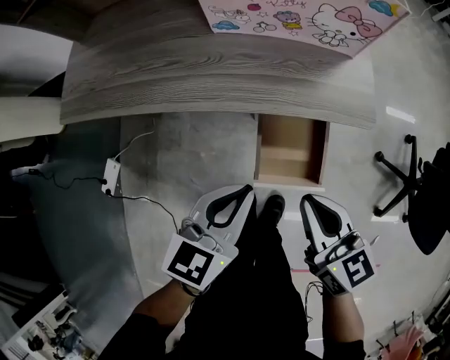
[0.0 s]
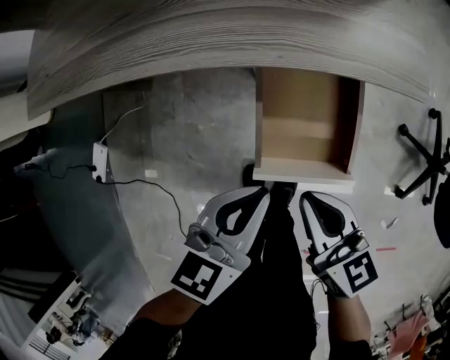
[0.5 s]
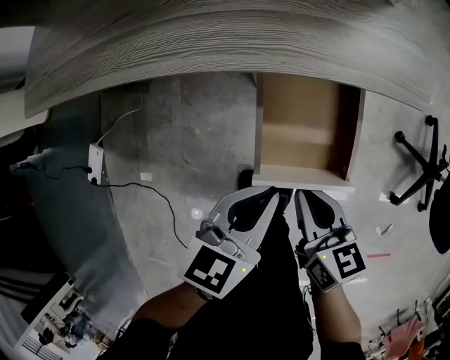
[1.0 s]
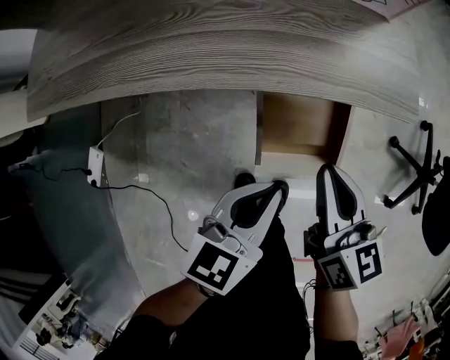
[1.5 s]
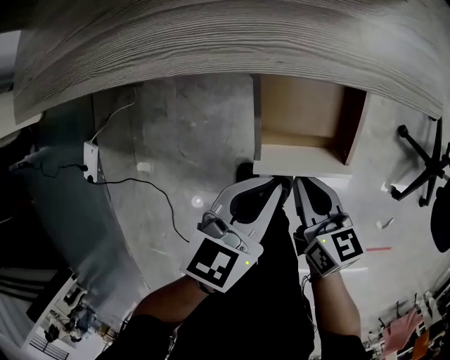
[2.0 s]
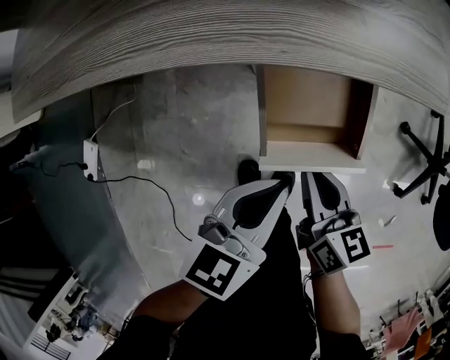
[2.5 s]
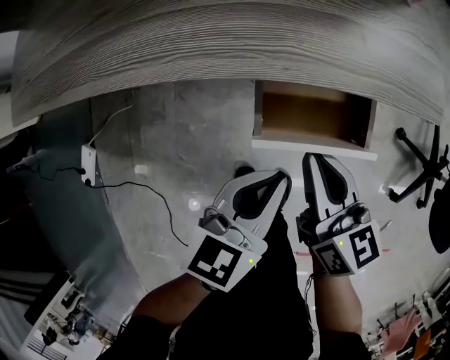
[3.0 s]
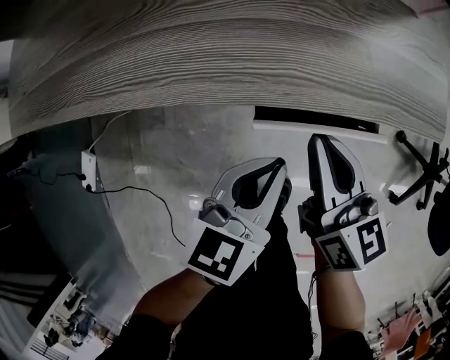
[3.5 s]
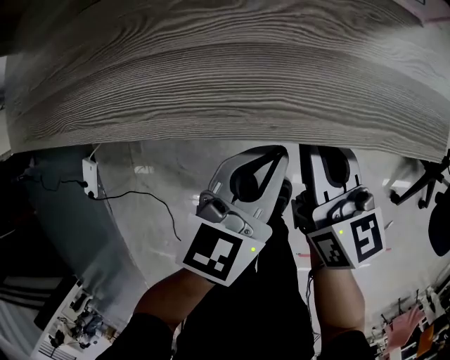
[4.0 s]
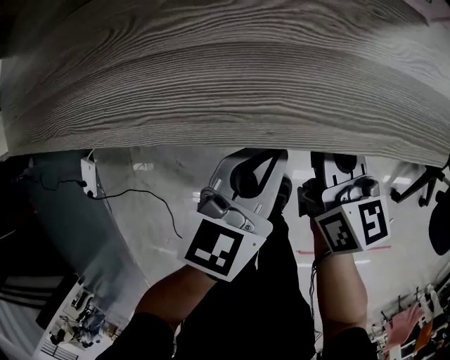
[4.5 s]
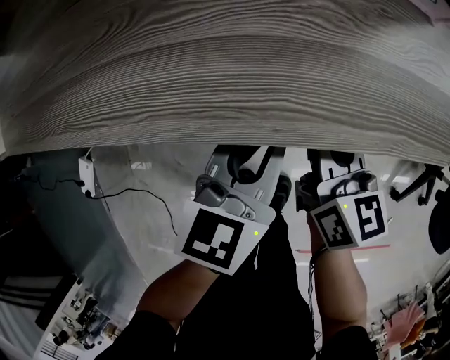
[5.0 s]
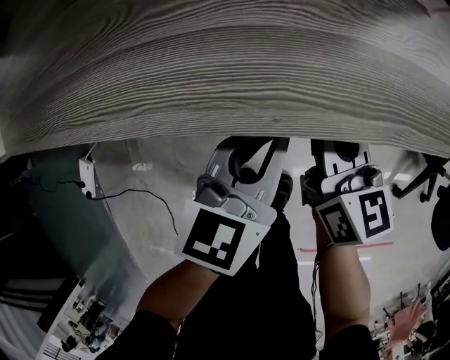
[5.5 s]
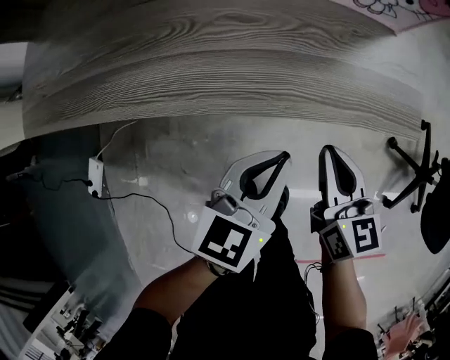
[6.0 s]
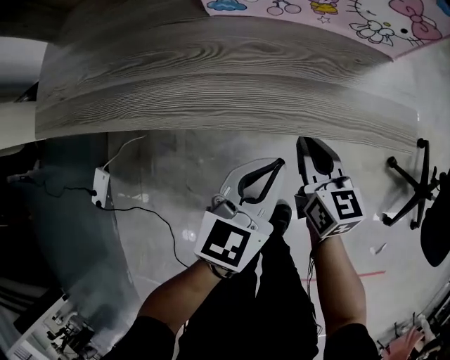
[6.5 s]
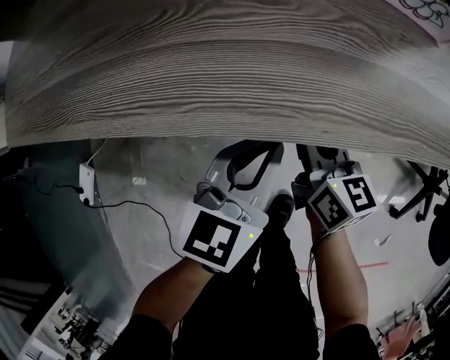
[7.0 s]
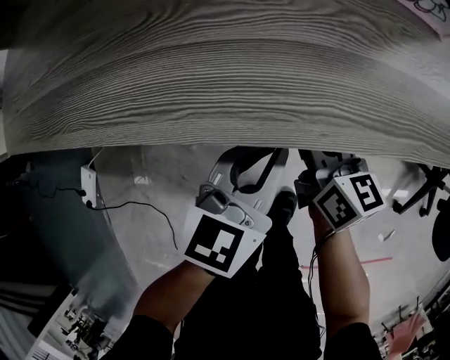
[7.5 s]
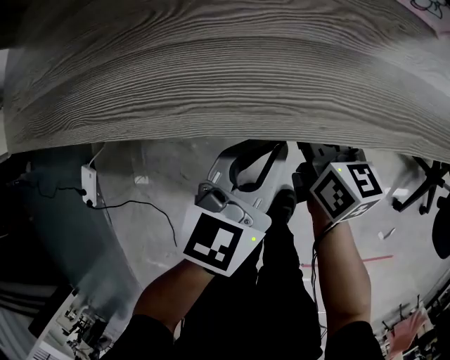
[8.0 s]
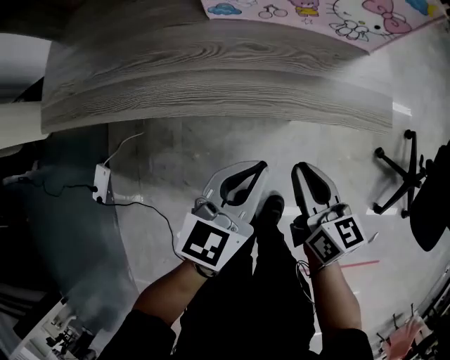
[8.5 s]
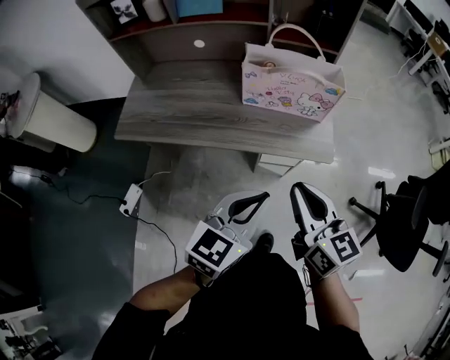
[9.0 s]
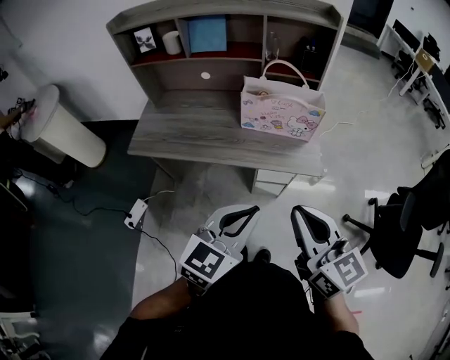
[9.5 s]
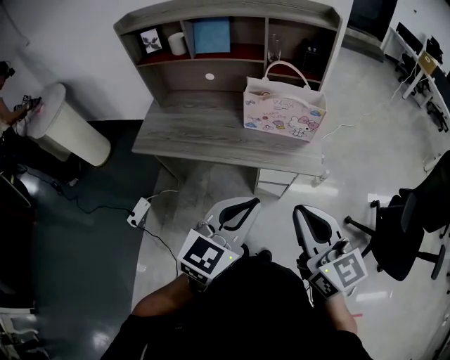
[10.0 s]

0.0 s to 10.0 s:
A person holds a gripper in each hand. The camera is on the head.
0.0 to 2.0 s: The left gripper moves downward, roughly 15 cm. Meanwhile the right gripper goes up and down, about 25 cm each way, reversing 2 times.
2.0 to 4.0 s: The right gripper moves forward and upward, approximately 20 cm. Meanwhile the left gripper travels forward by about 10 cm.
4.0 to 6.0 s: The right gripper ends up some 5 cm from where it was; the left gripper changes place by approximately 5 cm.
6.0 to 8.0 s: The right gripper moves downward, forward and to the left, approximately 15 cm, and opens up. Meanwhile the left gripper heads downward, covering some 5 cm.
8.0 to 10.0 s: The grippers both shift upward and backward by some 60 cm. The right gripper rotates some 40 degrees, and closes its fingers; the left gripper turns by approximately 20 degrees.

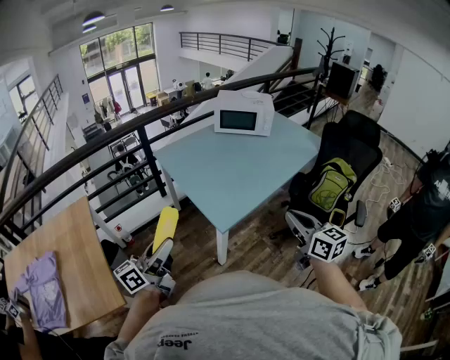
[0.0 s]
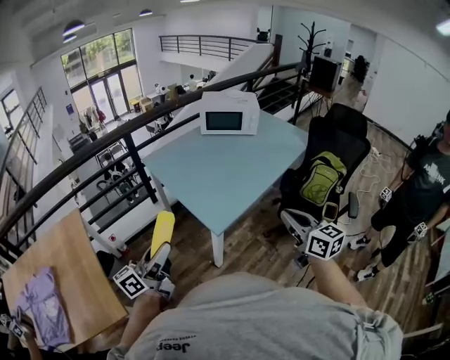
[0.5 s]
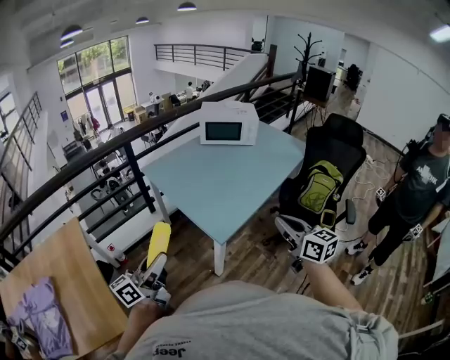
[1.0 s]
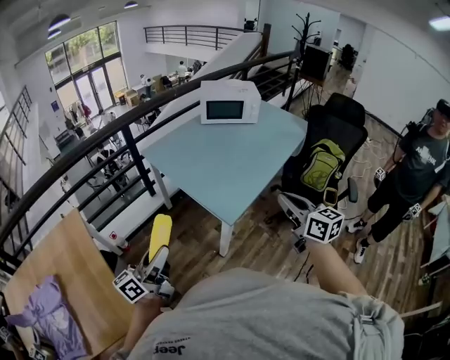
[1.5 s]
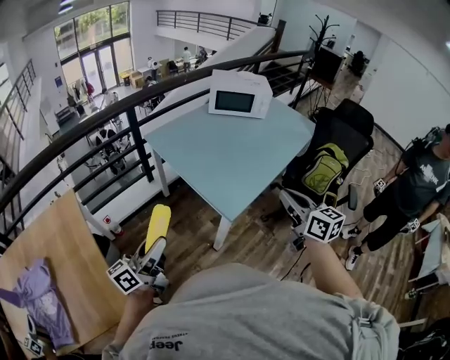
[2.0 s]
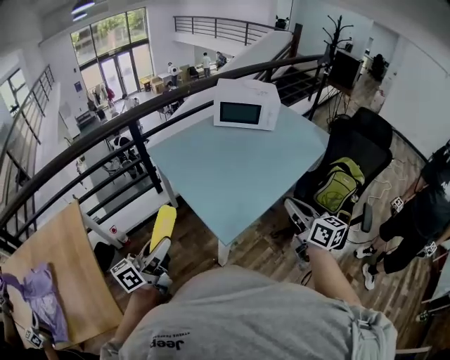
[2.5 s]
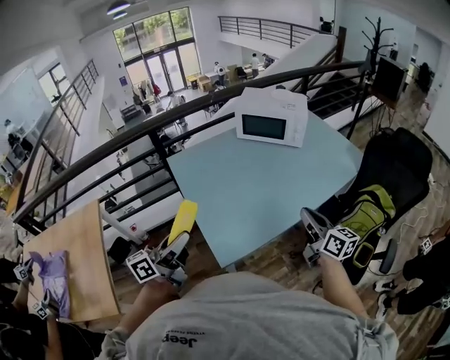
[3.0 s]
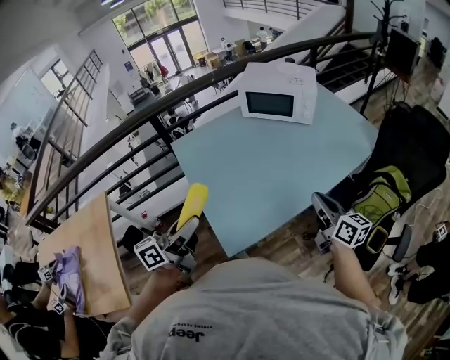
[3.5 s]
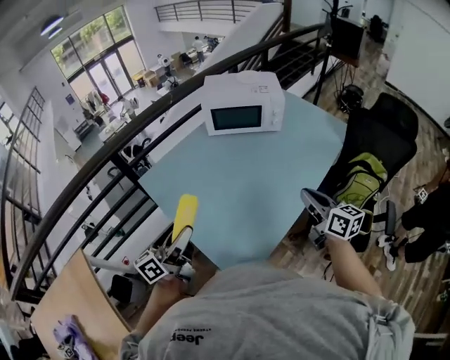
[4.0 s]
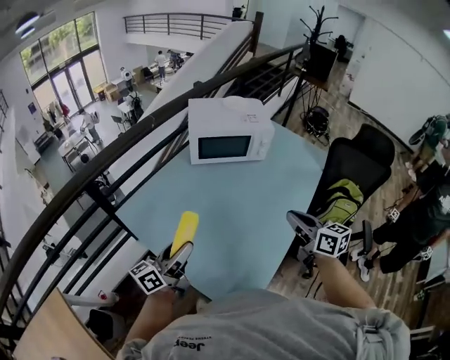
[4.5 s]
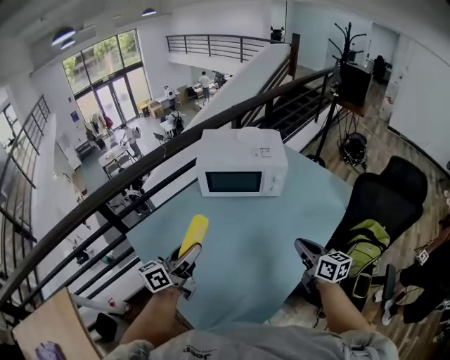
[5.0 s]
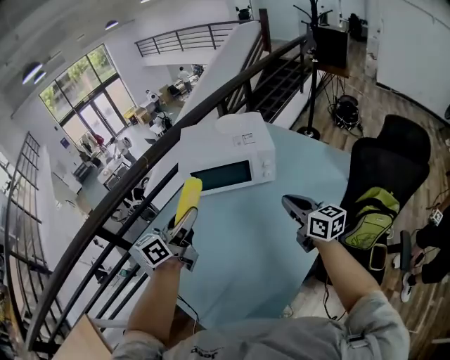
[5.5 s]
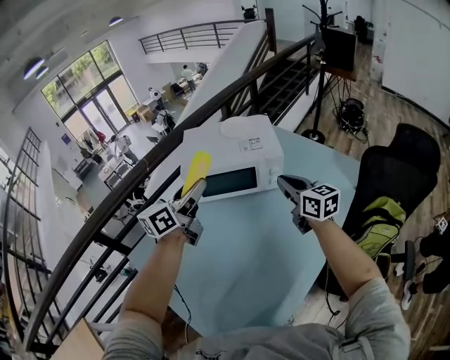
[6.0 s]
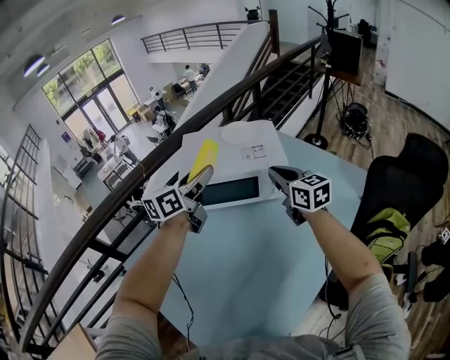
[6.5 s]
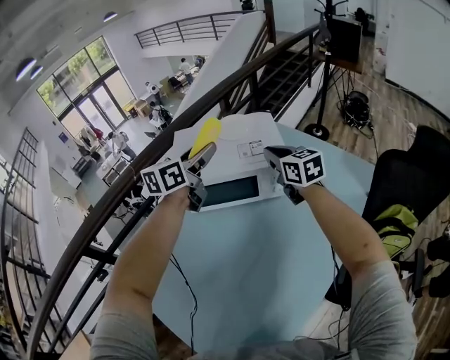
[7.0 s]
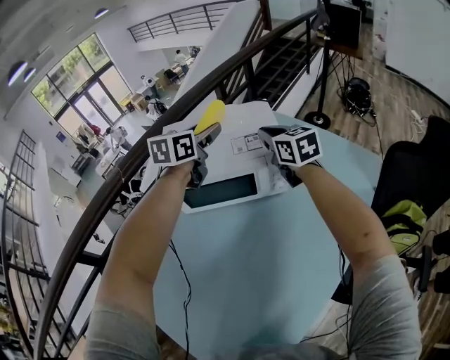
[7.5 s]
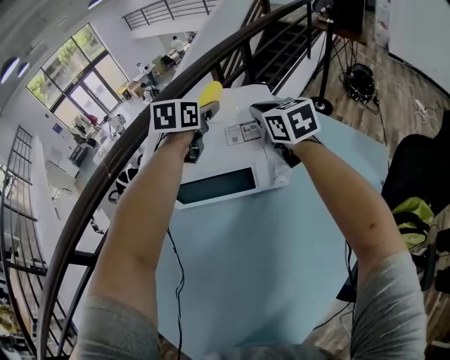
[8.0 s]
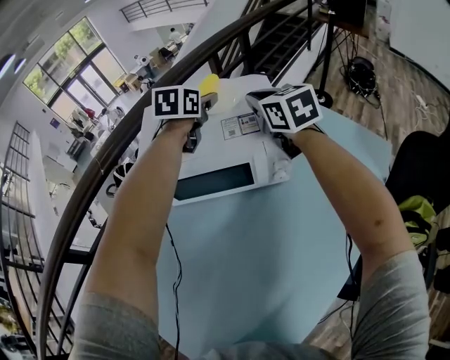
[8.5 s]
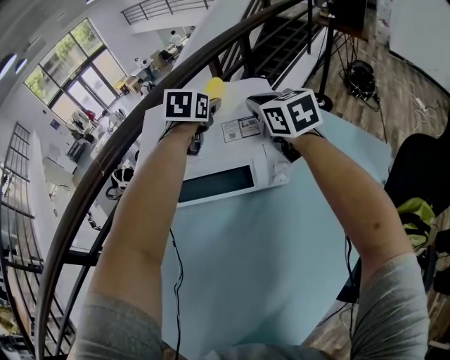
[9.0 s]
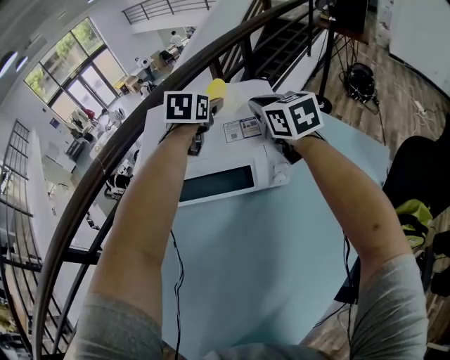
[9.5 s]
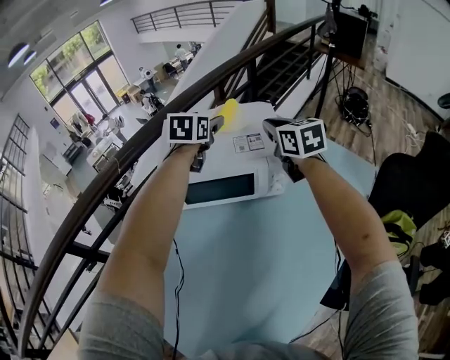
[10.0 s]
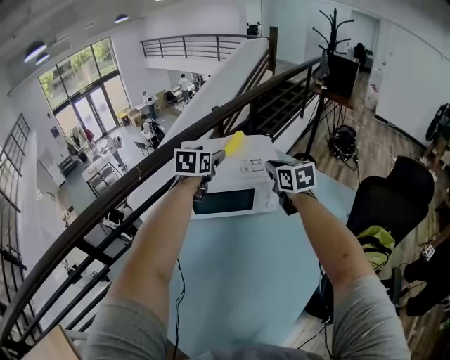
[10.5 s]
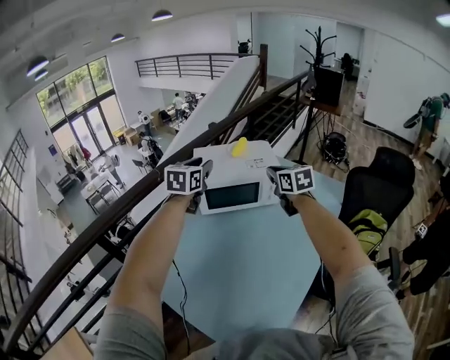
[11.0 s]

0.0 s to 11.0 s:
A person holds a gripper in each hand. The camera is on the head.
0.0 to 2.0 s: The left gripper travels to the left by some 10 cm; the right gripper travels to the left and forward by some 15 cm.
2.0 to 3.5 s: The left gripper is displaced to the right and forward by some 35 cm. Meanwhile the right gripper moves forward and to the right, some 35 cm.
3.5 to 5.5 s: Both grippers travel together forward, some 40 cm.
5.5 to 7.5 s: The grippers both shift forward by approximately 35 cm. The left gripper swivels about 30 degrees.
7.5 to 9.0 s: The left gripper is displaced forward and downward by some 15 cm, and turns by some 20 degrees; the right gripper heads forward, covering about 5 cm.
9.0 to 11.0 s: The right gripper is displaced backward and upward by approximately 30 cm. Meanwhile the left gripper moves backward, upward and to the left, about 40 cm.

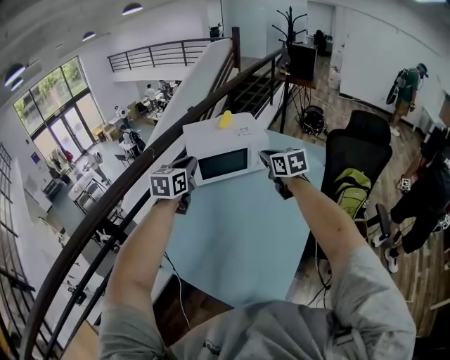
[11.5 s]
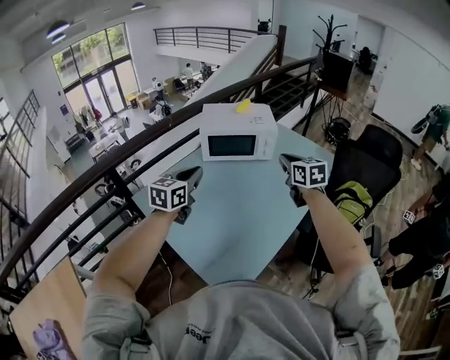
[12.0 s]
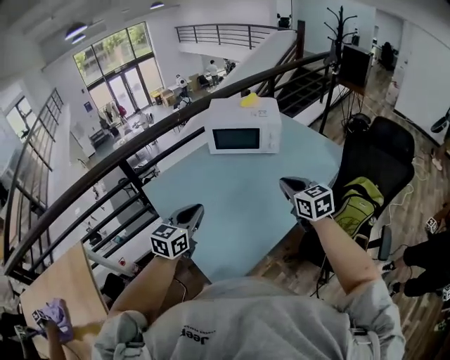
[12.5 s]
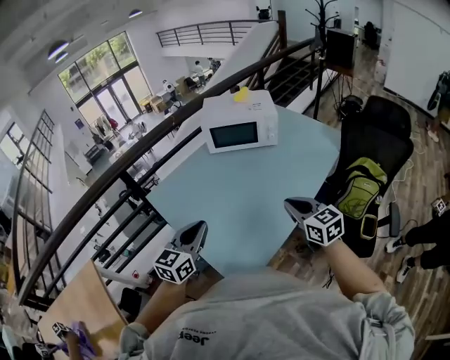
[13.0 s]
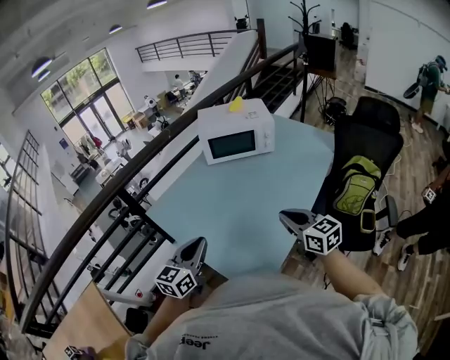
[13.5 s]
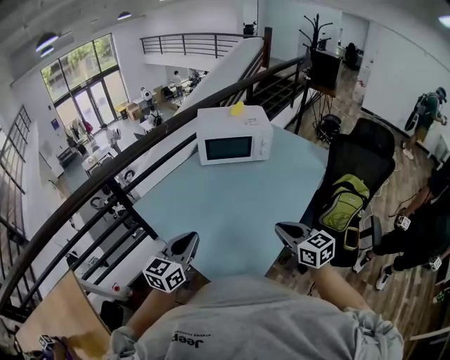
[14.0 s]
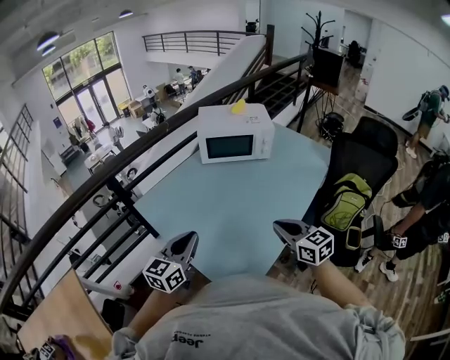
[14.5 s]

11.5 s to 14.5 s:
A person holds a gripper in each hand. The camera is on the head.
11.5 to 13.0 s: The two grippers go about 35 cm backward. The right gripper rotates about 20 degrees.
13.0 to 14.5 s: The two grippers go roughly 5 cm to the left.

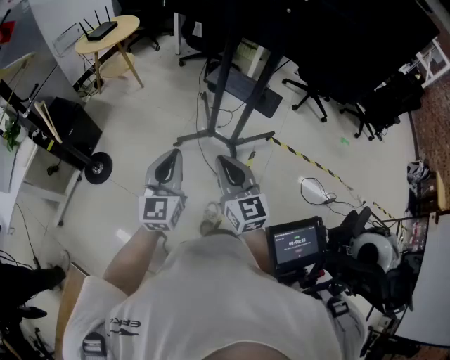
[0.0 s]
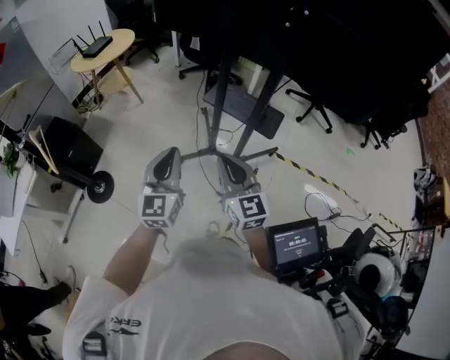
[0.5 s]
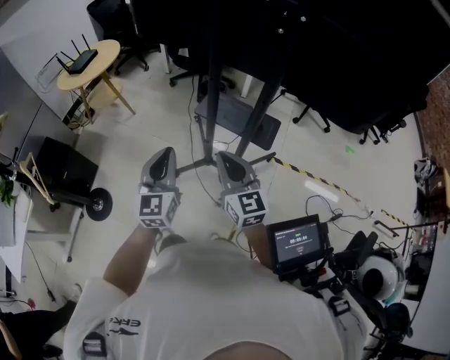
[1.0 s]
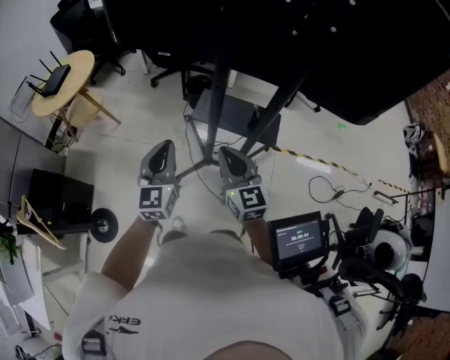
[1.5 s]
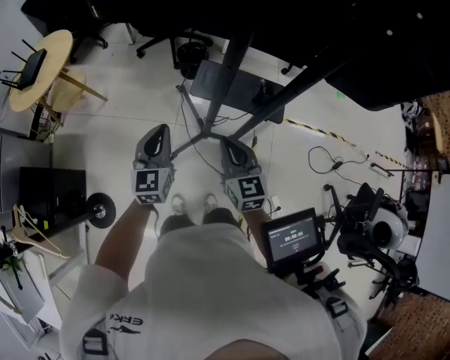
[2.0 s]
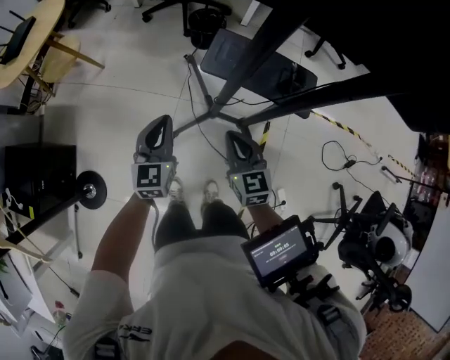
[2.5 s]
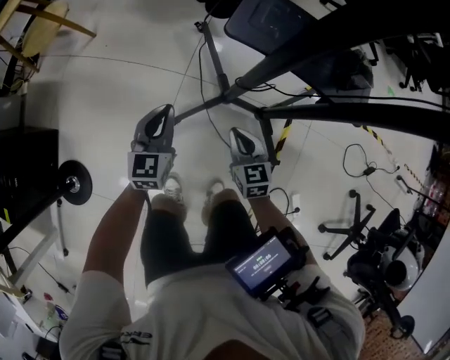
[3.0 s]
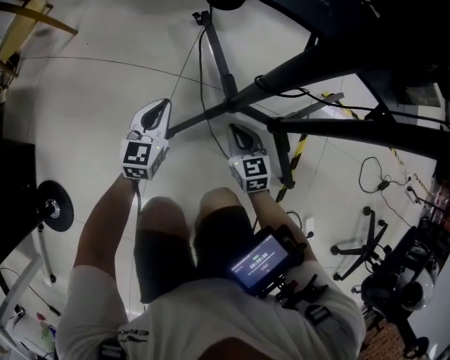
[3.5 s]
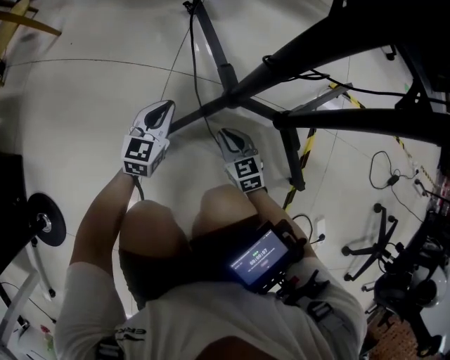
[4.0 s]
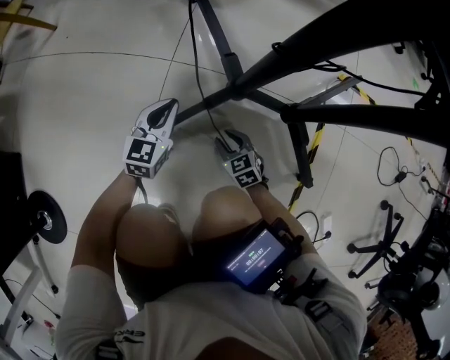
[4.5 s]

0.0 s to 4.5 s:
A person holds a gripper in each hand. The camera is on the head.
0.0 to 2.0 s: The grippers both shift forward by approximately 40 cm. The left gripper rotates about 20 degrees, while the right gripper changes its angle by approximately 30 degrees.
2.0 to 4.5 s: Both grippers move downward, roughly 80 cm. The right gripper points its fingers some 30 degrees further downward, and opens up.
